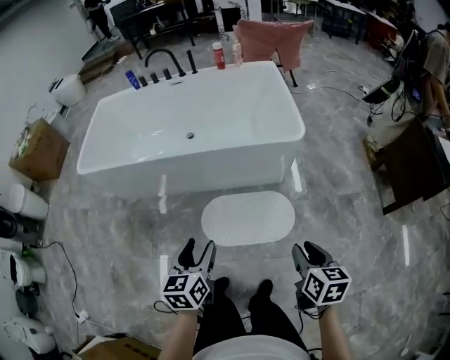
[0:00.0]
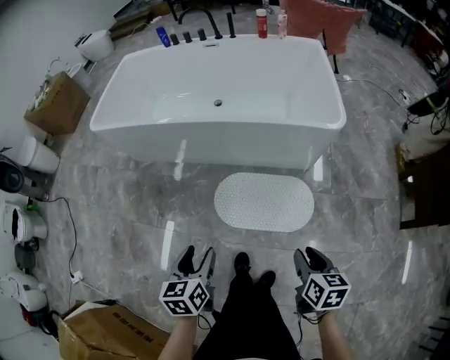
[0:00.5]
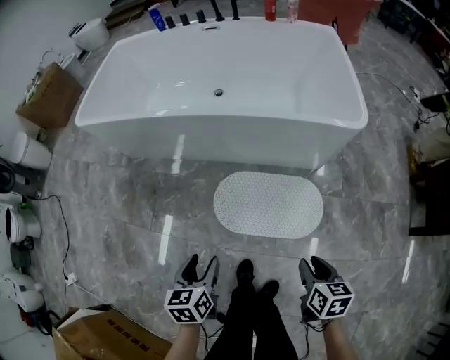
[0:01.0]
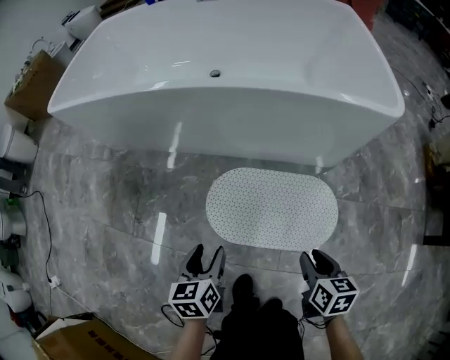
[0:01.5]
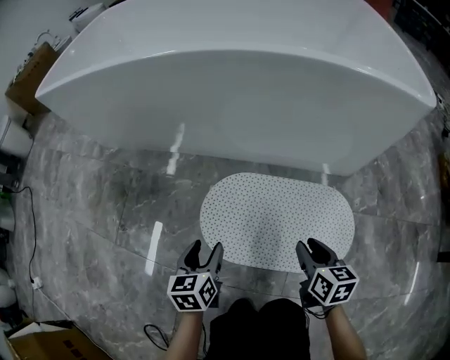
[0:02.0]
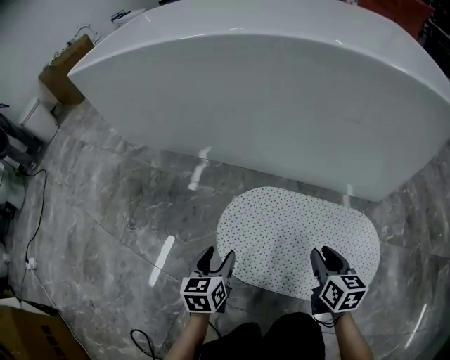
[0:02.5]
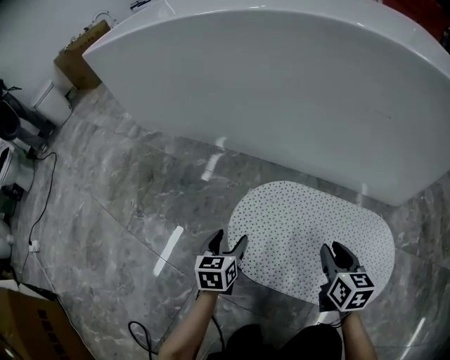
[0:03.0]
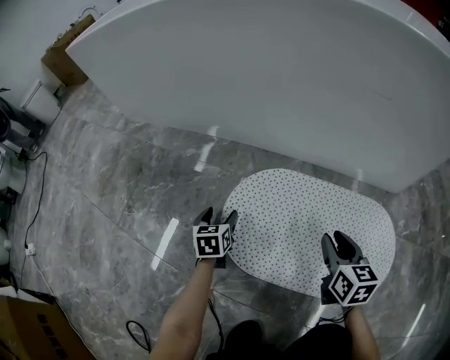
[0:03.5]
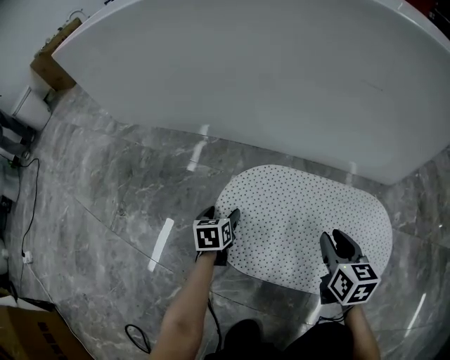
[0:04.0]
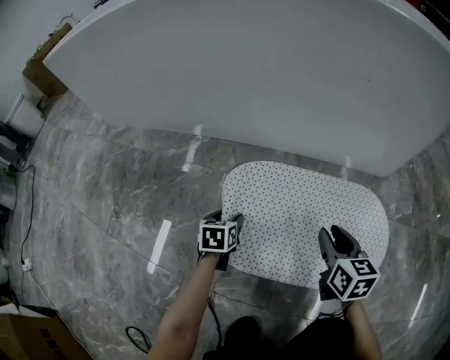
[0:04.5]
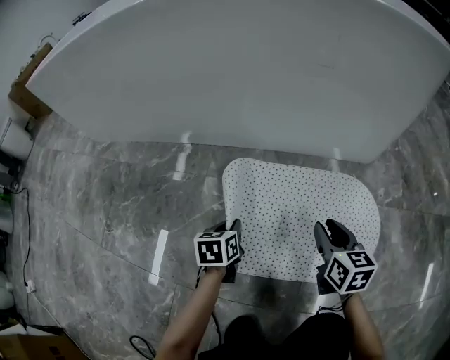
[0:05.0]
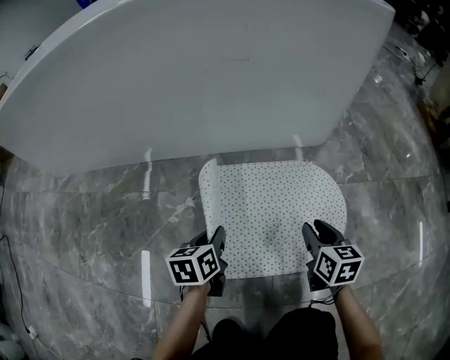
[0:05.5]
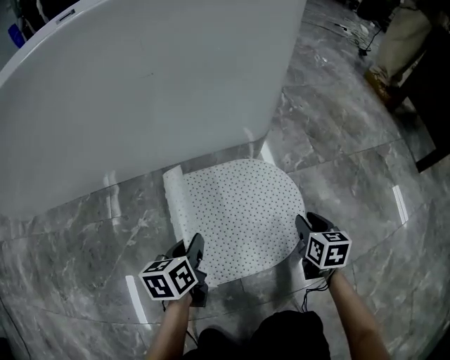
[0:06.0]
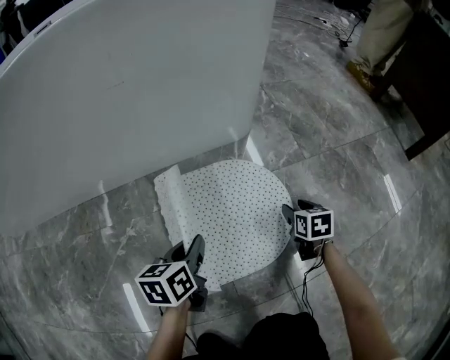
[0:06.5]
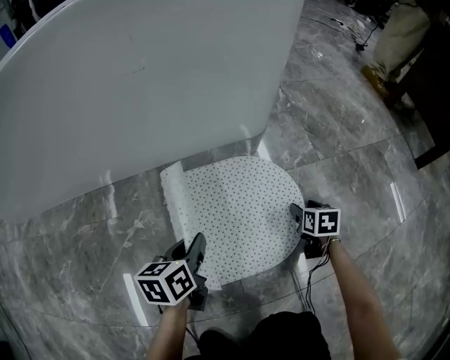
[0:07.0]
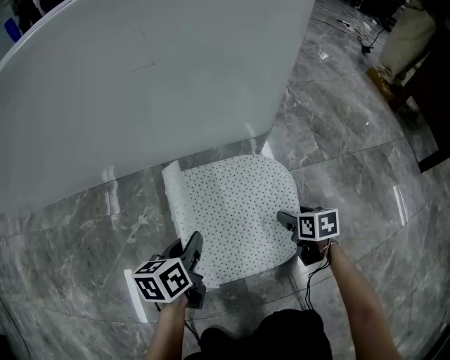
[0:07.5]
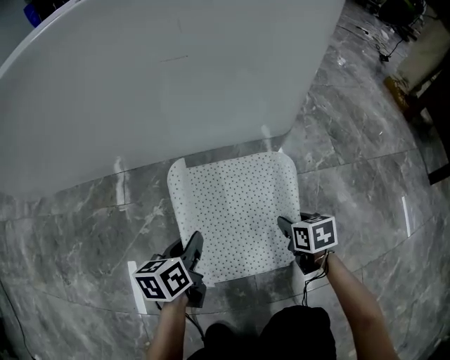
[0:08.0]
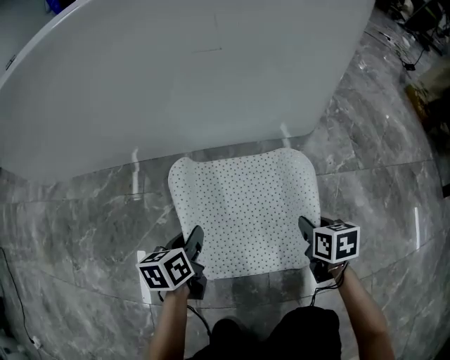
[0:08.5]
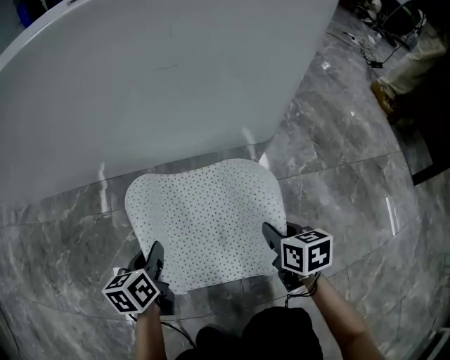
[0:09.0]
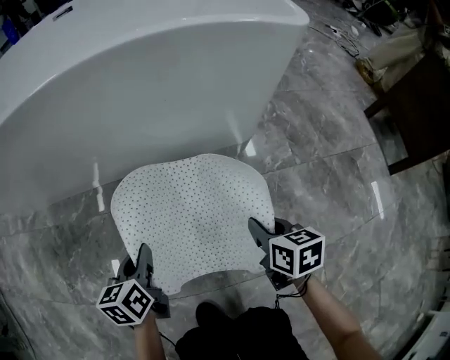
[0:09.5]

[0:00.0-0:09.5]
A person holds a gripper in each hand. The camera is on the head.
0:00.0 to 0:02.0: The left gripper moves downward, about 60 cm; the right gripper travels downward and forward by some 60 cm.
0:02.0 to 0:04.0: The left gripper travels downward and forward by some 25 cm. The right gripper travels downward and forward by some 15 cm.
0:04.0 to 0:05.5: The grippers both shift to the right by about 15 cm. The left gripper changes its angle by roughly 20 degrees, and closes up.
0:05.5 to 0:07.5: The left gripper is displaced to the right by some 5 cm; the right gripper heads downward and to the right, covering some 15 cm, and opens its fingers.
0:07.5 to 0:09.5: The two grippers go roughly 25 cm upward and to the left. The right gripper closes up.

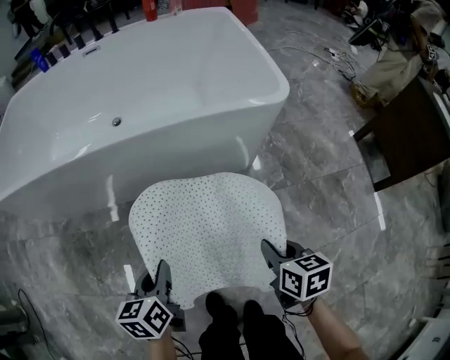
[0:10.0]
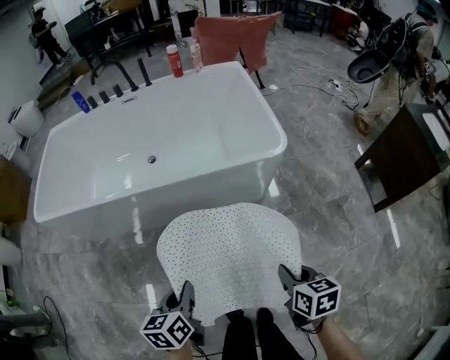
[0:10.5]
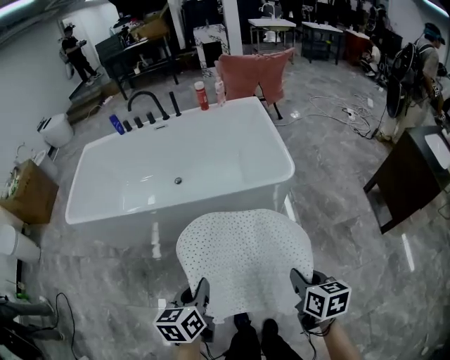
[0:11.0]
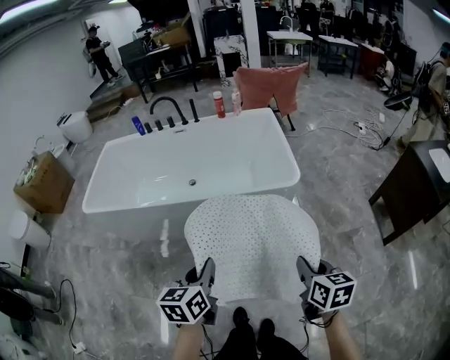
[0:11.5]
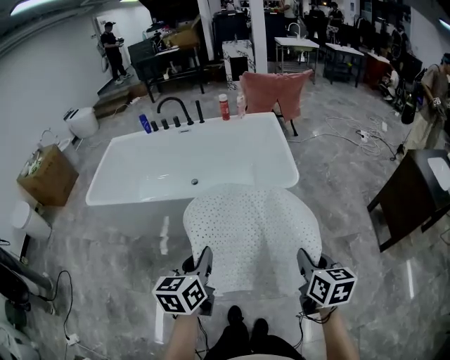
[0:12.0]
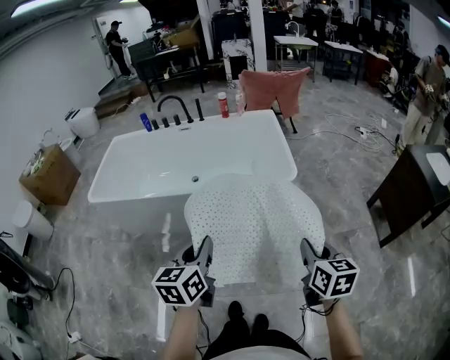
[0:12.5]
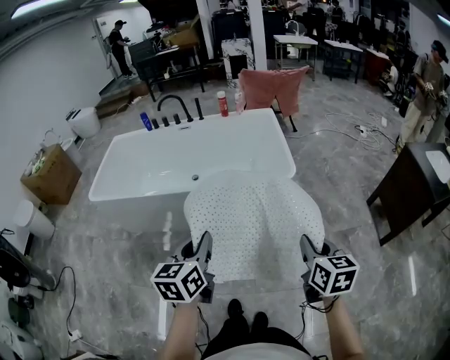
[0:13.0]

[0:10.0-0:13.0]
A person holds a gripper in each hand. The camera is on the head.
0:10.0 to 0:11.5: The grippers both shift upward by some 35 cm.
0:11.5 to 0:13.0: The two grippers go about 5 cm upward.

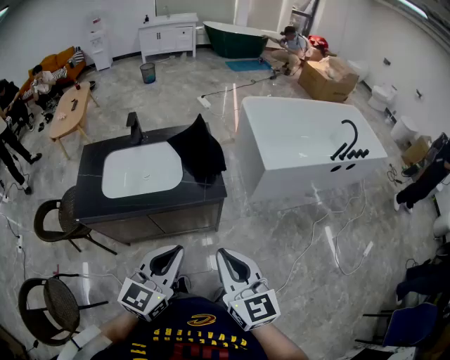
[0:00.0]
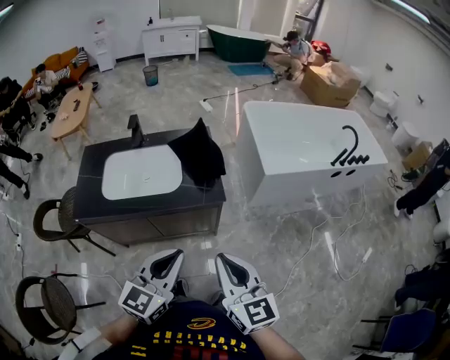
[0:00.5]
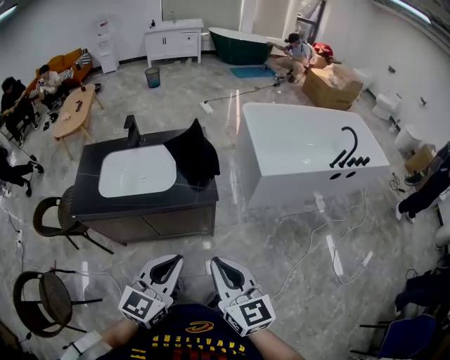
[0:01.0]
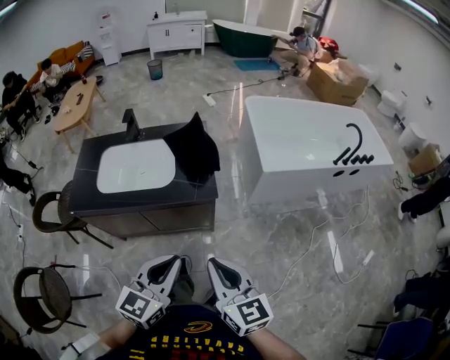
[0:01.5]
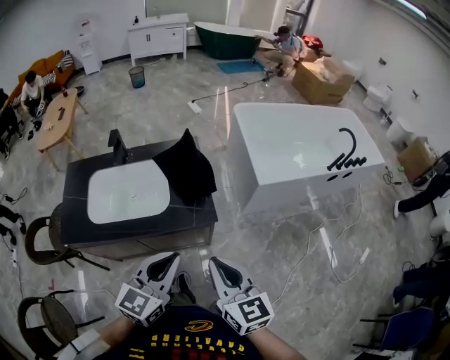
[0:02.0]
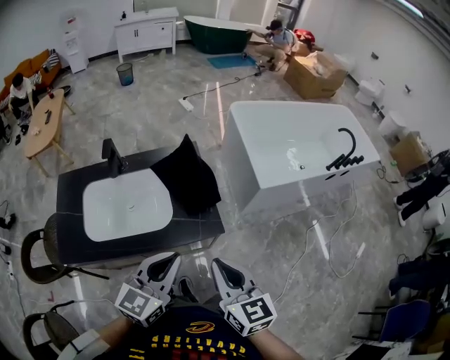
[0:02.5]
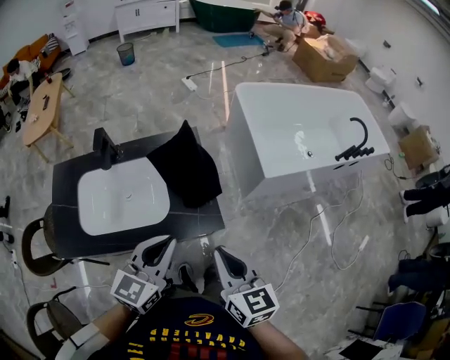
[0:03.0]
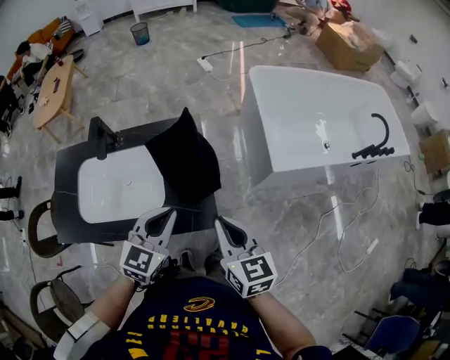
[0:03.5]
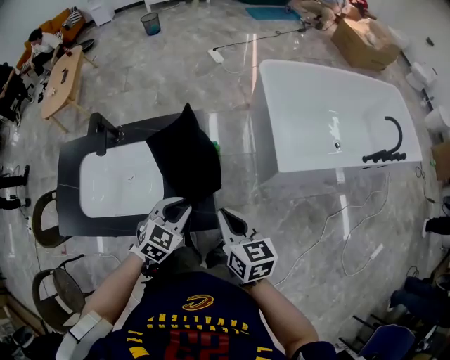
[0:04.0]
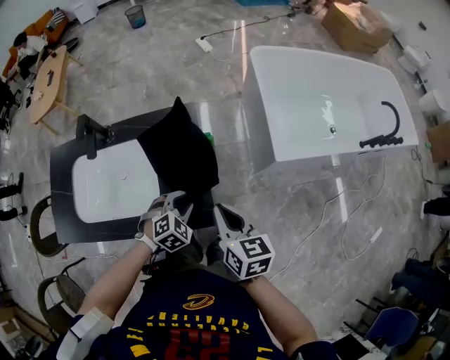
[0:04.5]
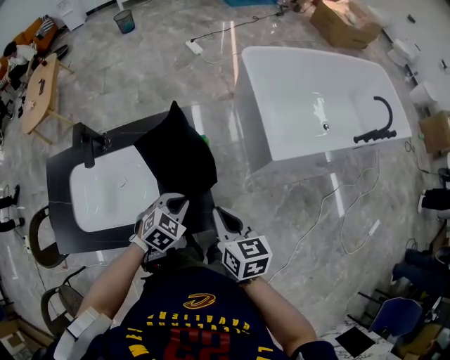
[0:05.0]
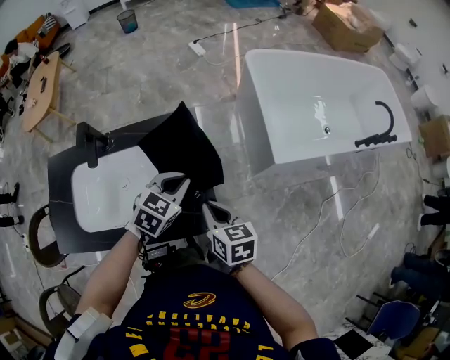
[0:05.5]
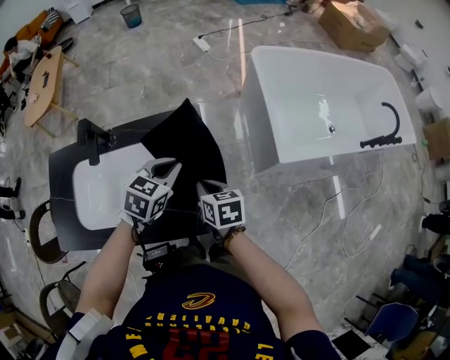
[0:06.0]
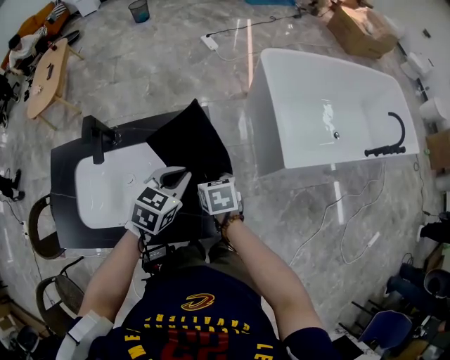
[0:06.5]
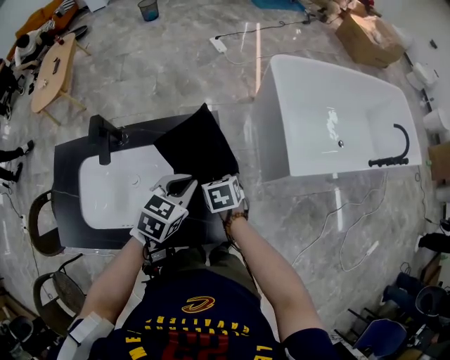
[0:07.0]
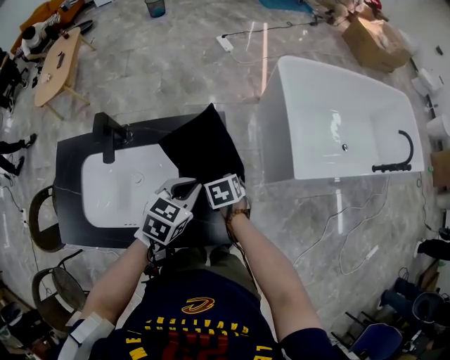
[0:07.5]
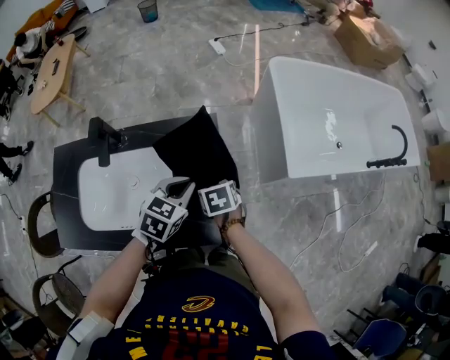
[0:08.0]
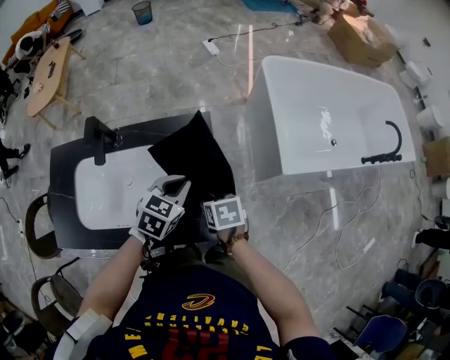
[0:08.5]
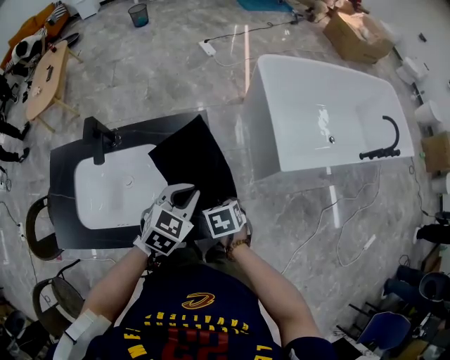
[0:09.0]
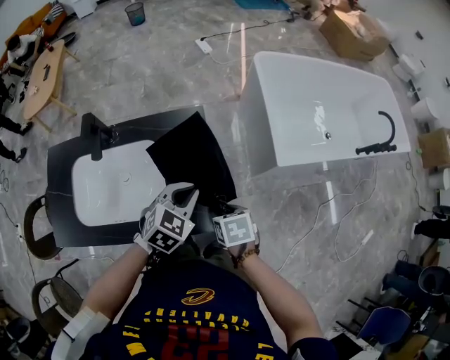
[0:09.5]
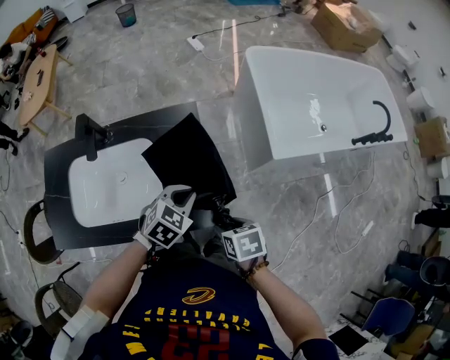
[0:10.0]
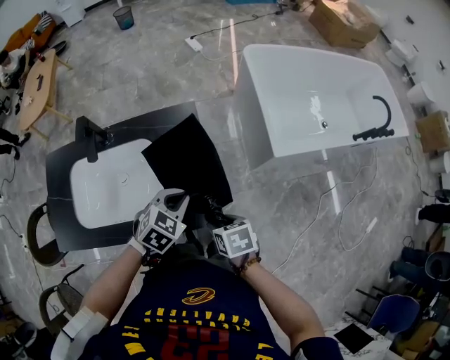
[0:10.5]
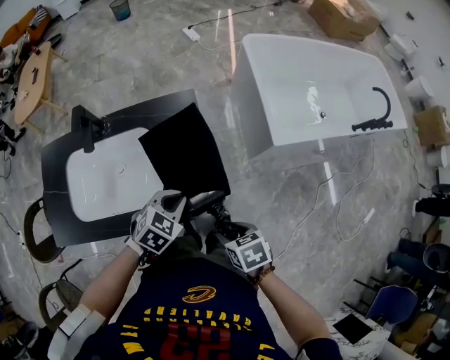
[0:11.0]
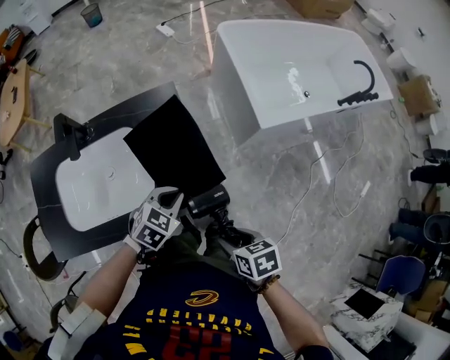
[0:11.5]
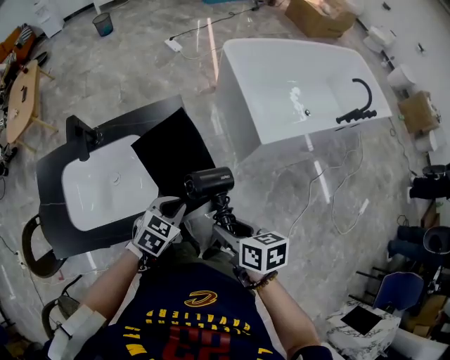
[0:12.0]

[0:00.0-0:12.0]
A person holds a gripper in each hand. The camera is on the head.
0:00.0 to 0:02.0: Both grippers move forward, roughly 10 cm.
0:02.0 to 0:04.0: The two grippers go roughly 30 cm forward and downward. The right gripper changes its angle by approximately 20 degrees, while the left gripper tilts its fingers approximately 30 degrees downward.
0:04.0 to 0:06.0: The left gripper heads forward, covering roughly 15 cm. The right gripper shifts roughly 15 cm downward, forward and to the left.
0:06.0 to 0:08.0: The right gripper changes its angle by about 20 degrees, and opens.
0:08.0 to 0:10.0: The left gripper is displaced backward by about 10 cm; the right gripper travels backward and to the right by some 20 cm.
0:10.0 to 0:12.0: The left gripper is displaced backward by some 10 cm, while the right gripper heads upward, covering approximately 5 cm, and rotates about 30 degrees.

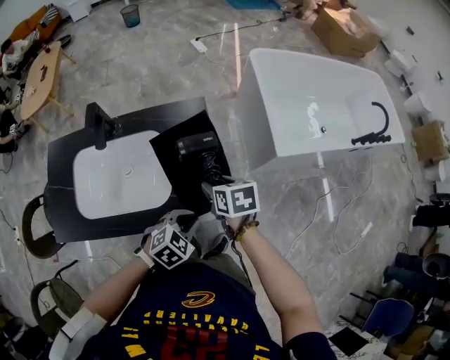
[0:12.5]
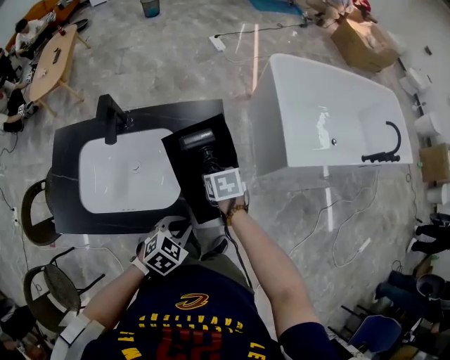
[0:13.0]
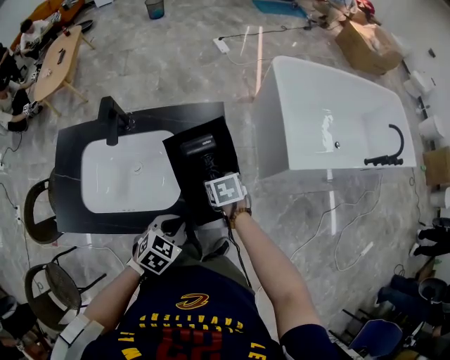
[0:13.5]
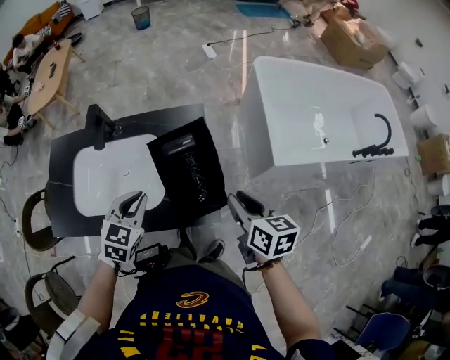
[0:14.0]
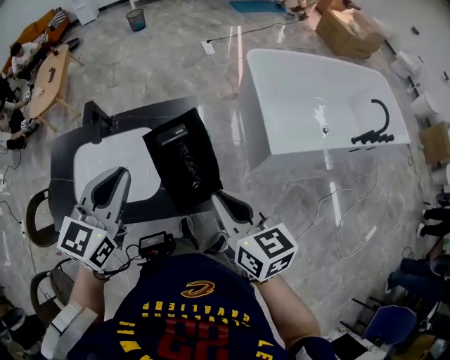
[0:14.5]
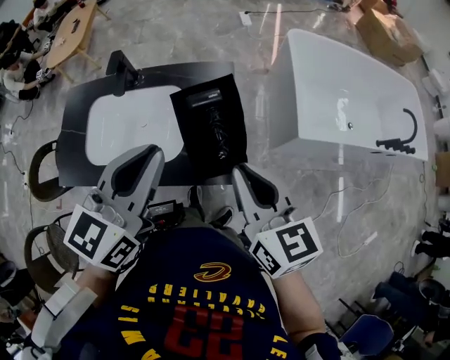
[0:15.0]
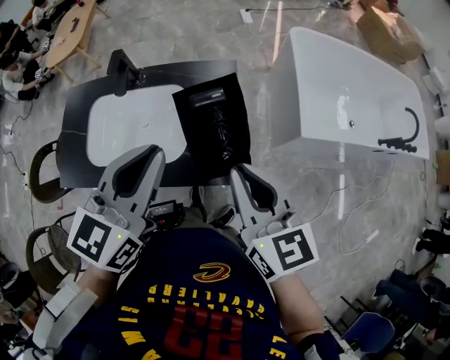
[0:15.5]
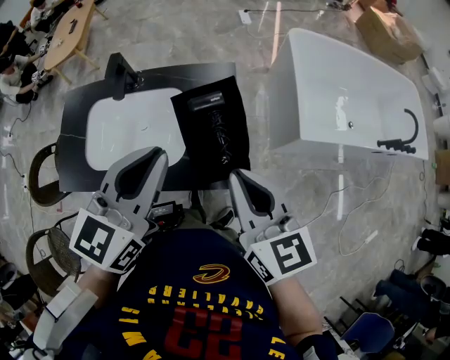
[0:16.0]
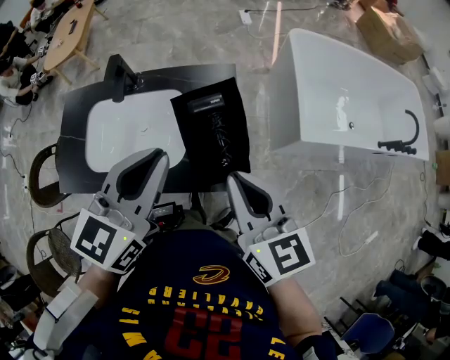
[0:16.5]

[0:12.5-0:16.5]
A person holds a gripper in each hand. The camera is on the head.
0:12.5 to 0:14.5: Both grippers travel together upward, some 25 cm. The right gripper angles its fingers upward, by about 30 degrees, and closes; the left gripper tilts its fingers some 40 degrees upward.
0:14.5 to 0:16.5: The right gripper shifts roughly 5 cm to the left.
